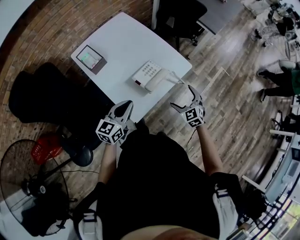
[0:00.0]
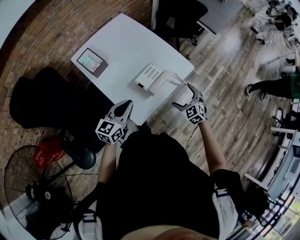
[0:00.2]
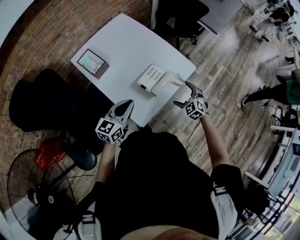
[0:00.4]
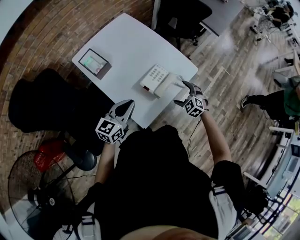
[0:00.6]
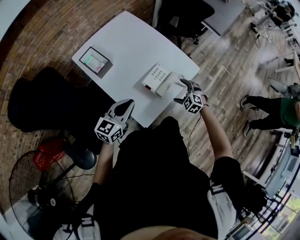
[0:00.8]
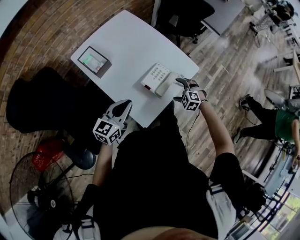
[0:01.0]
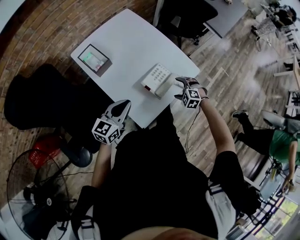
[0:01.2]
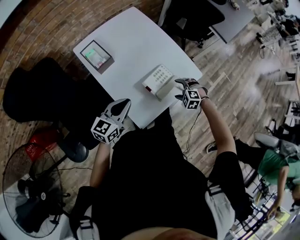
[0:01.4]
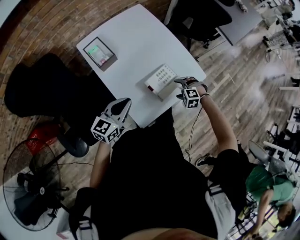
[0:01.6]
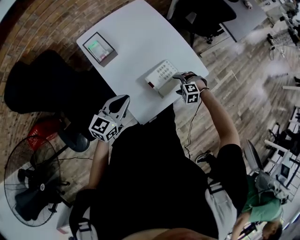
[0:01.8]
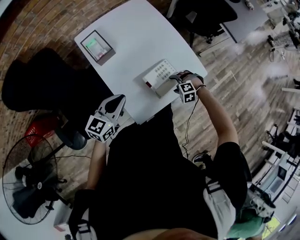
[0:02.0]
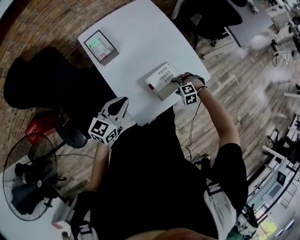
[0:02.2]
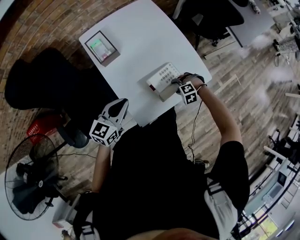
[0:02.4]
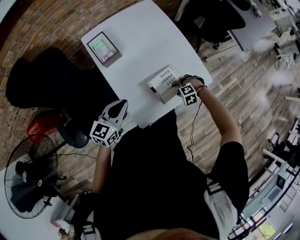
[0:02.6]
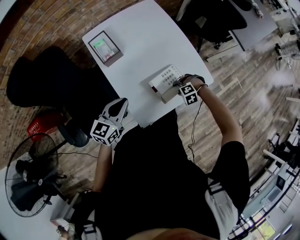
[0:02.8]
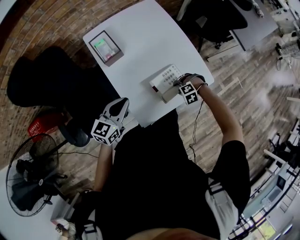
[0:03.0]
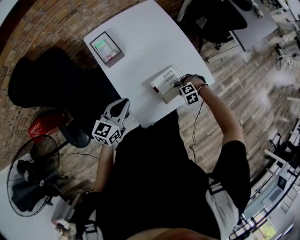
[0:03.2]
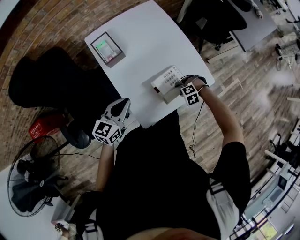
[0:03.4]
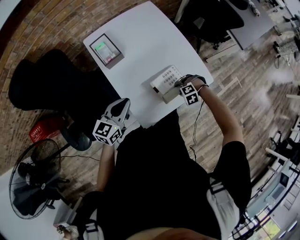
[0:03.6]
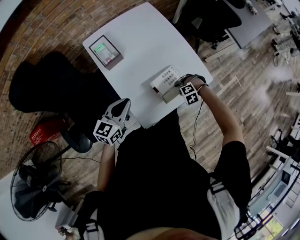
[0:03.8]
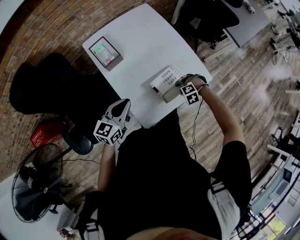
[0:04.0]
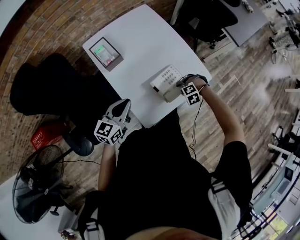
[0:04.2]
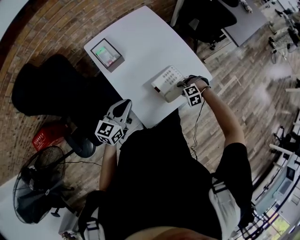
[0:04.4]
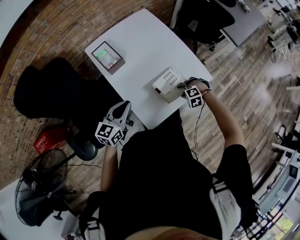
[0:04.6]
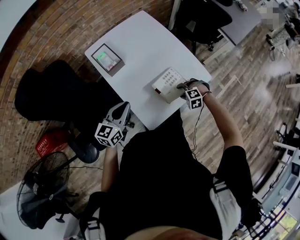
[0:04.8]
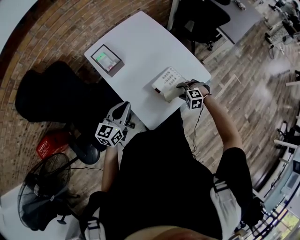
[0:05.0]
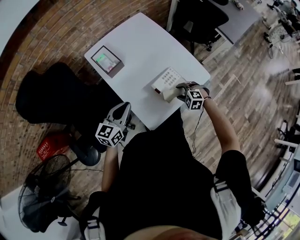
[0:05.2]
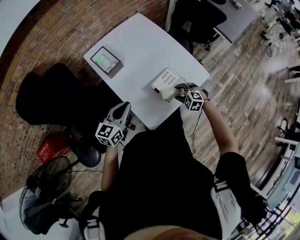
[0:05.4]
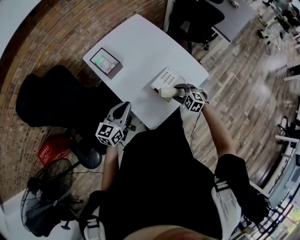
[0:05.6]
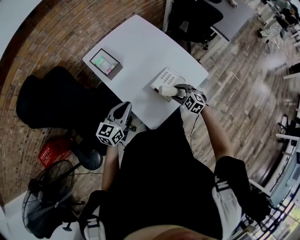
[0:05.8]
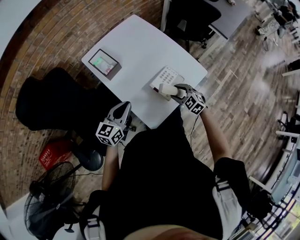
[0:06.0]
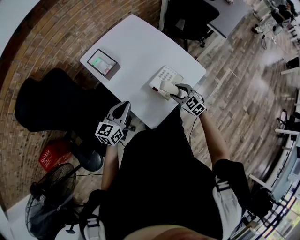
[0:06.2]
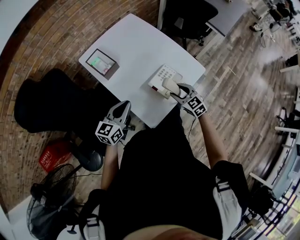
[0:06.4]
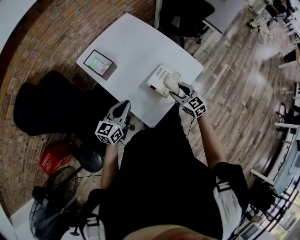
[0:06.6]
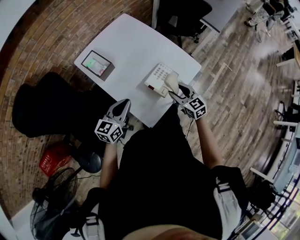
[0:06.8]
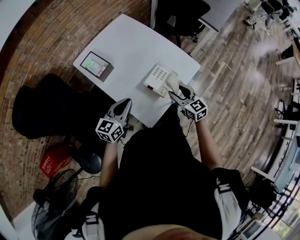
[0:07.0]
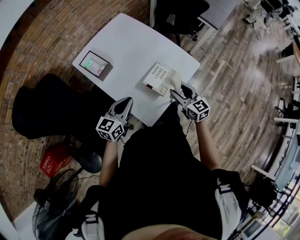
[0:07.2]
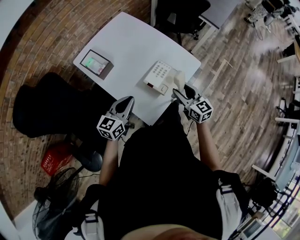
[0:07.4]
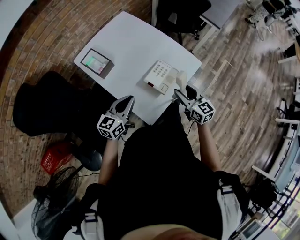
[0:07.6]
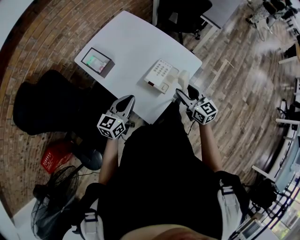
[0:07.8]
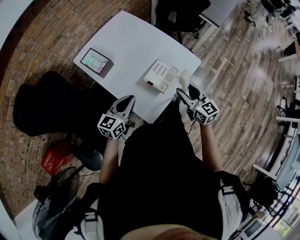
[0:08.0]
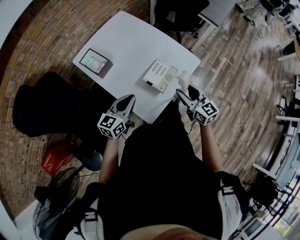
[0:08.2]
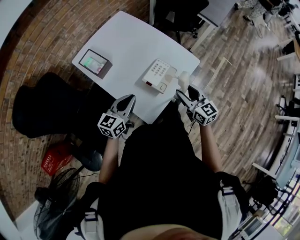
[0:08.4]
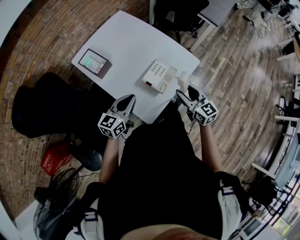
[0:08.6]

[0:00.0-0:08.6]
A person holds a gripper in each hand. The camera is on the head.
0.0 to 1.4 s: The left gripper goes some 10 cm to the left and forward, while the right gripper is displaced forward, downward and to the left by some 15 cm, and points its fingers roughly 30 degrees further downward.
1.4 to 2.8 s: The right gripper travels downward by some 5 cm, and turns by roughly 40 degrees.
2.8 to 4.4 s: The grippers stay close to where they were, moving slightly.
4.4 to 5.8 s: The right gripper is displaced upward by about 5 cm, and angles its fingers upward, by roughly 30 degrees.
5.8 to 7.2 s: The right gripper shifts approximately 10 cm upward, and turns by about 50 degrees.
7.2 to 8.6 s: The grippers stay close to where they were, moving slightly.

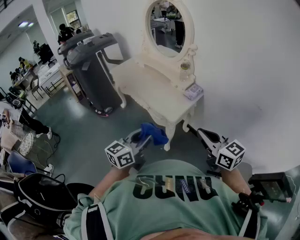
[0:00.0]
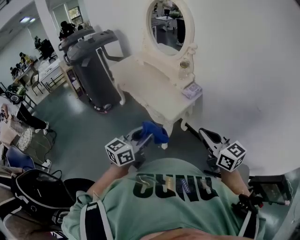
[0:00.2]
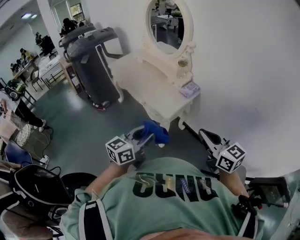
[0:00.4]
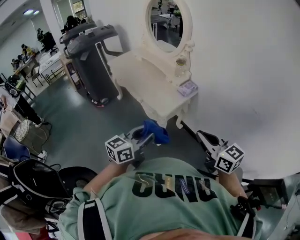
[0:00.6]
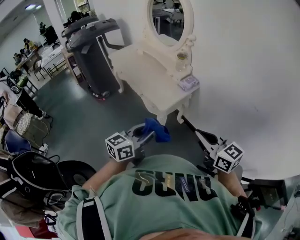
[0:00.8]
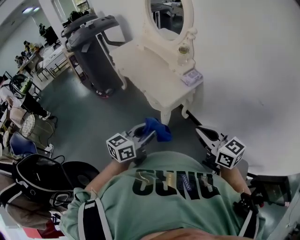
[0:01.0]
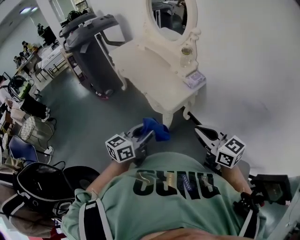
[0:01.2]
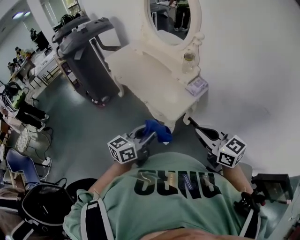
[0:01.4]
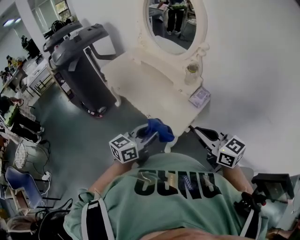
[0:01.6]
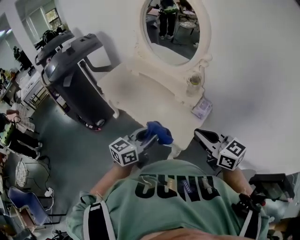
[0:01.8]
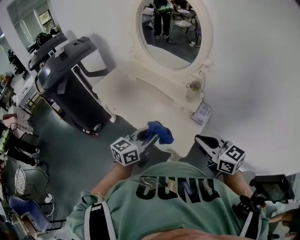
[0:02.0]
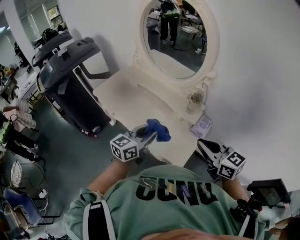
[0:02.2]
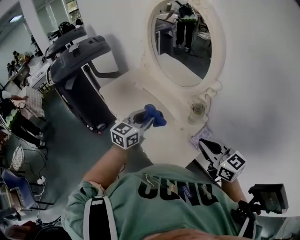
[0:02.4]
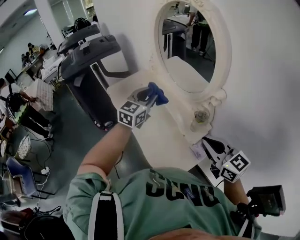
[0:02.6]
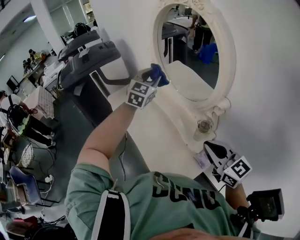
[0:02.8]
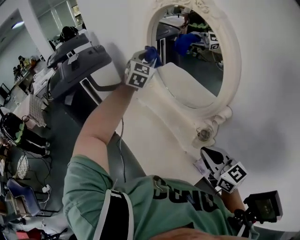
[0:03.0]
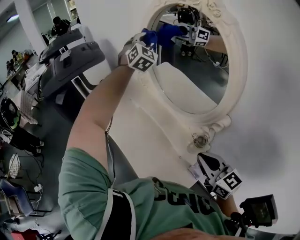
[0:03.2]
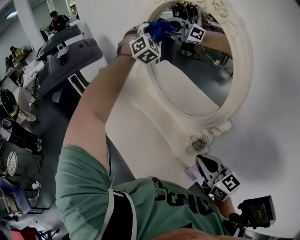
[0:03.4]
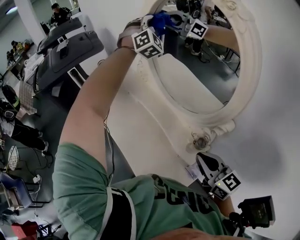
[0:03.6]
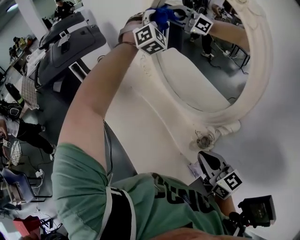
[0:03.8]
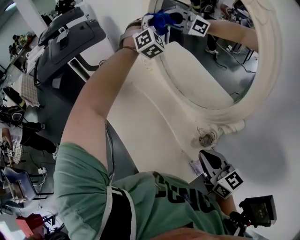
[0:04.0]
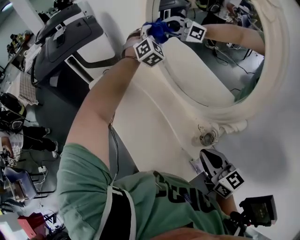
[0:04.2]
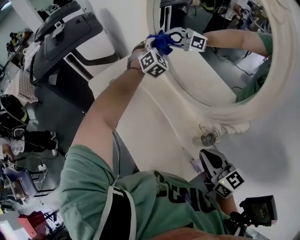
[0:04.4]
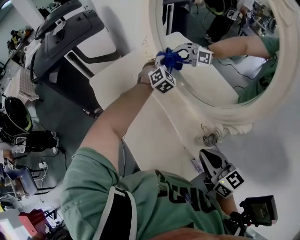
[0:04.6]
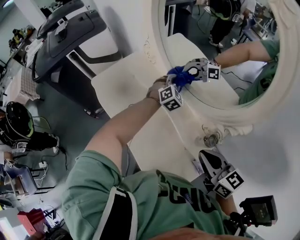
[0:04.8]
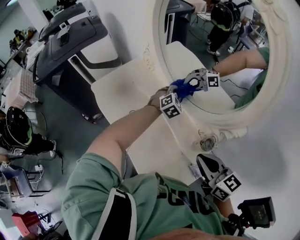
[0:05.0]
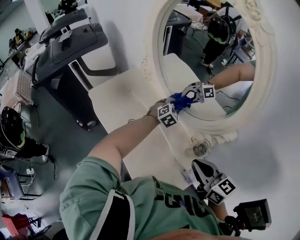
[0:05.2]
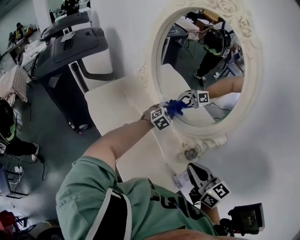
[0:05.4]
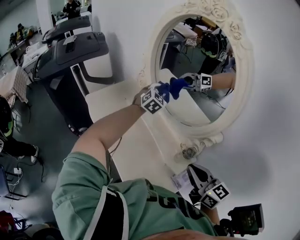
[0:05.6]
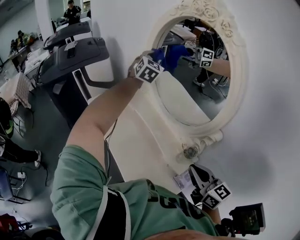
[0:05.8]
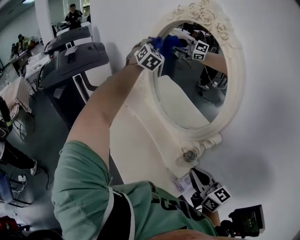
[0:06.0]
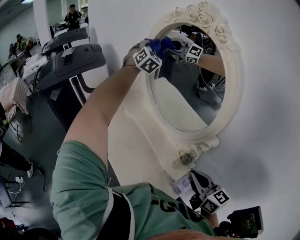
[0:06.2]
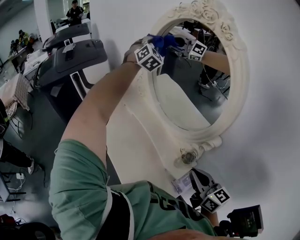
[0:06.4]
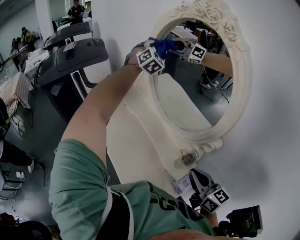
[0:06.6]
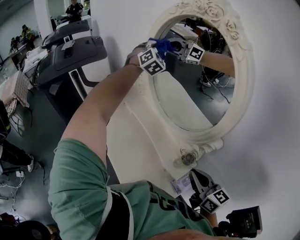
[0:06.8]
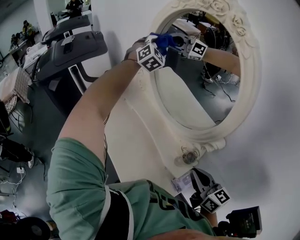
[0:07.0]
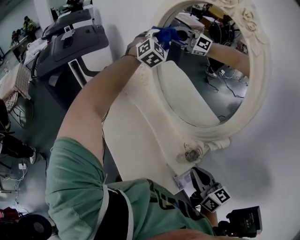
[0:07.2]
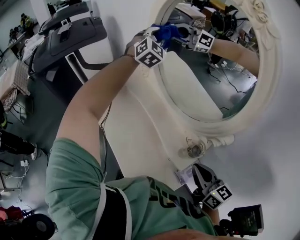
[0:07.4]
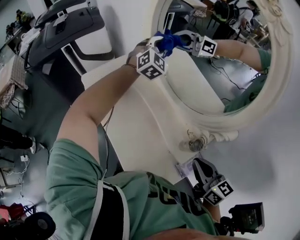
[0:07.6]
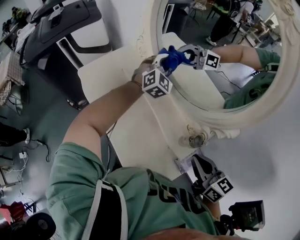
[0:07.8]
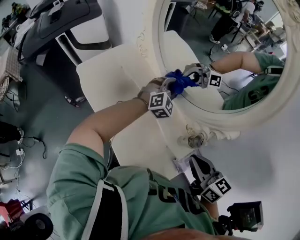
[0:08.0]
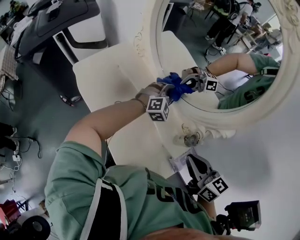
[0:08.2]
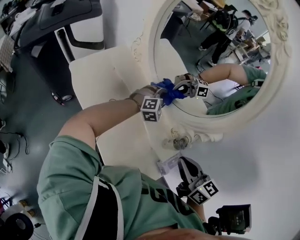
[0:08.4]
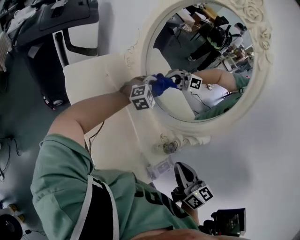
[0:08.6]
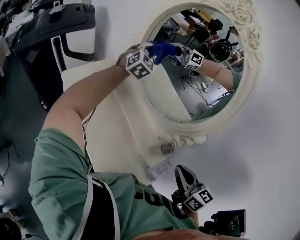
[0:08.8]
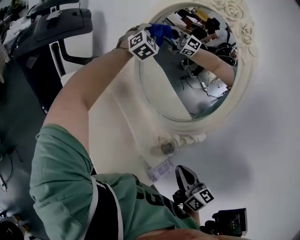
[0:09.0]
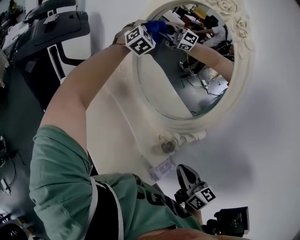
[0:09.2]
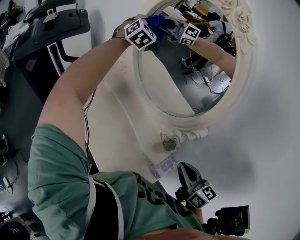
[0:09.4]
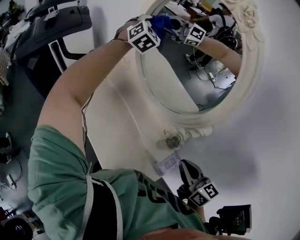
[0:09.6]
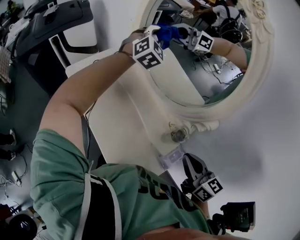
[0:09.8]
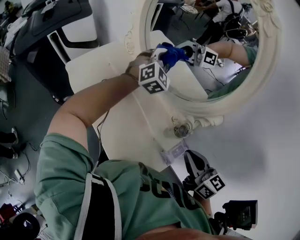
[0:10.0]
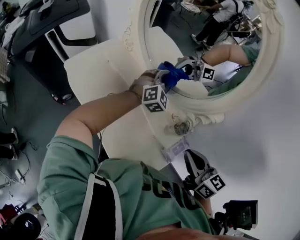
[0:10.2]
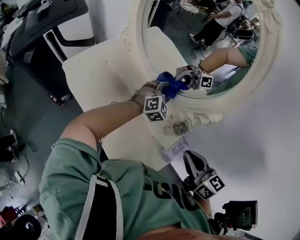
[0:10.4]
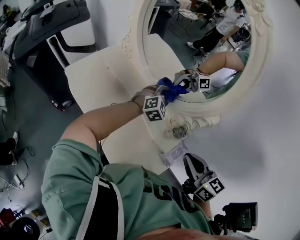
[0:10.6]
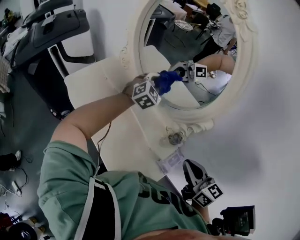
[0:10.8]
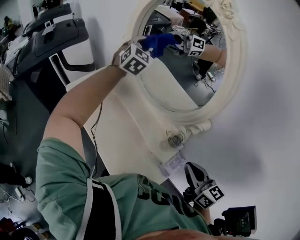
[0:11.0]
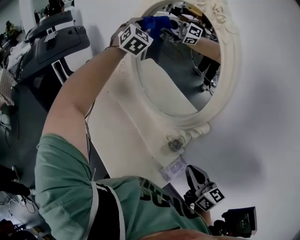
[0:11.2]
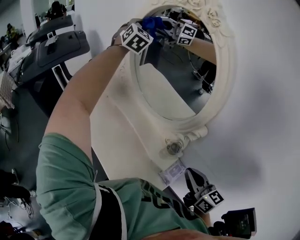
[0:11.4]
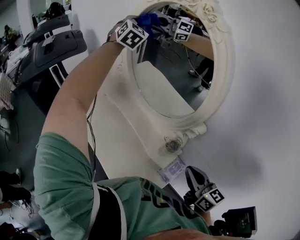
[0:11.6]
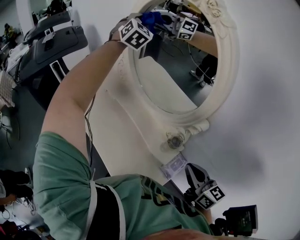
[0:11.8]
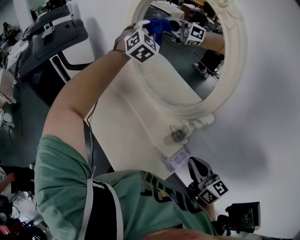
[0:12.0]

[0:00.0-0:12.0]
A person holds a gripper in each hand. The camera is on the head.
0.0 to 1.6 s: Both grippers move forward, some 20 cm.
1.6 to 3.0 s: The pair of grippers is taken forward, some 60 cm. The left gripper rolls clockwise, seen from behind, by approximately 60 degrees.
3.0 to 4.4 s: The left gripper moves downward and forward, some 25 cm, and changes its angle by approximately 20 degrees; the right gripper moves downward and forward, roughly 10 cm.
4.4 to 6.0 s: The left gripper goes some 25 cm upward; the right gripper goes some 5 cm upward.
6.0 to 7.6 s: The left gripper heads downward, covering about 20 cm; the right gripper moves downward, about 5 cm.
7.6 to 9.0 s: The left gripper goes some 10 cm upward; the right gripper moves some 5 cm.
9.0 to 10.4 s: The left gripper is displaced downward, backward and to the right by about 40 cm, and rotates some 30 degrees.
10.4 to 12.0 s: The left gripper travels upward and forward by about 35 cm, and swivels about 30 degrees.

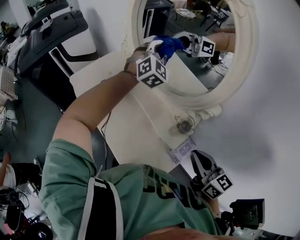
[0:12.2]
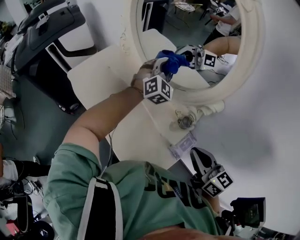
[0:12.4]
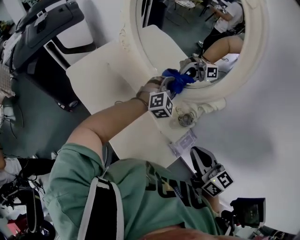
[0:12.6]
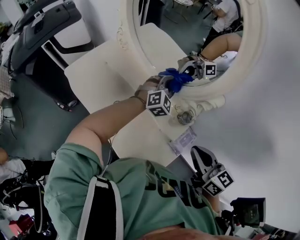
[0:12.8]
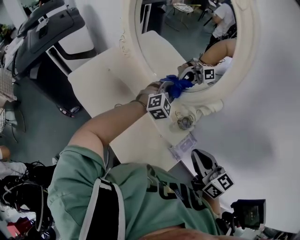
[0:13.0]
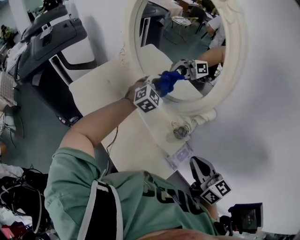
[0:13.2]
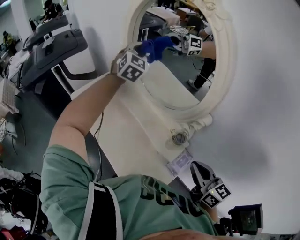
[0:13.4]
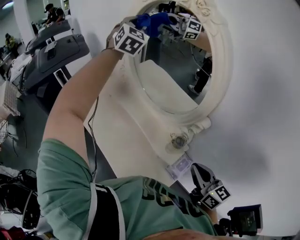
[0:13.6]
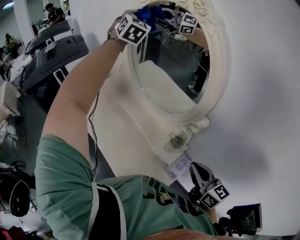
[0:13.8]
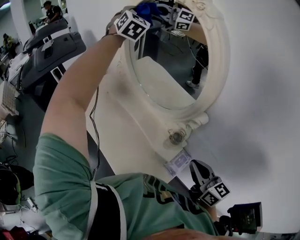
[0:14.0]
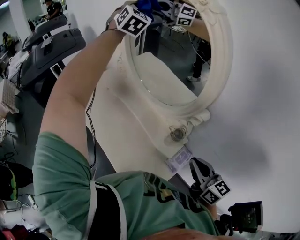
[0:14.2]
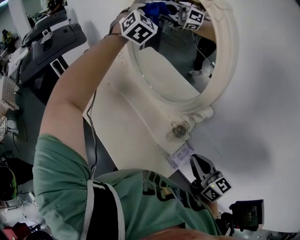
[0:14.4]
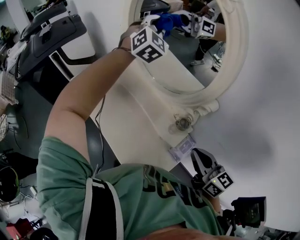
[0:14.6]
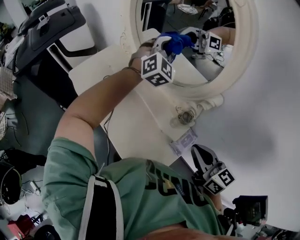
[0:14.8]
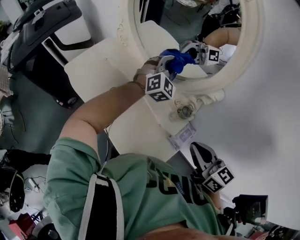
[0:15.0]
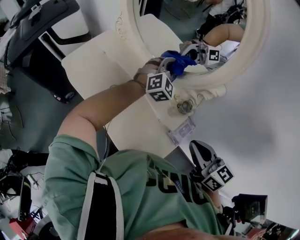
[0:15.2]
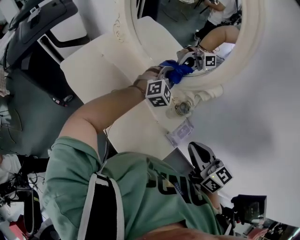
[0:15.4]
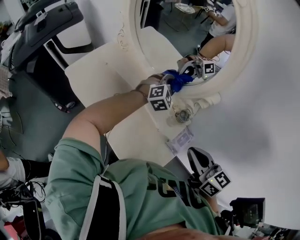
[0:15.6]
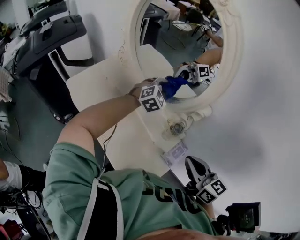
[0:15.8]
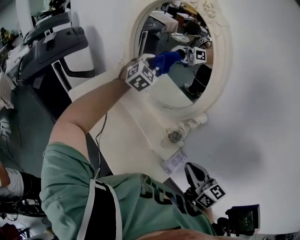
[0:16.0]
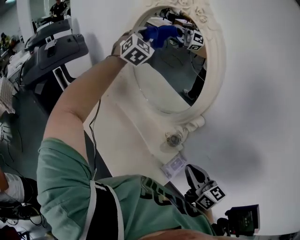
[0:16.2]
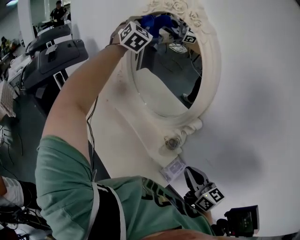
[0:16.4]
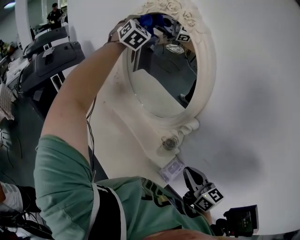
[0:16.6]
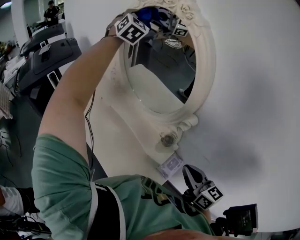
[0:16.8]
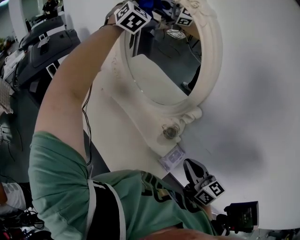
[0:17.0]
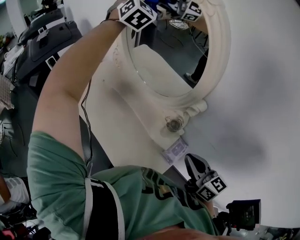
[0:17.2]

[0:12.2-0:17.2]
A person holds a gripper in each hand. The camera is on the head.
12.2 to 13.8 s: The left gripper travels upward, forward and to the left by approximately 25 cm.
13.8 to 15.6 s: The left gripper goes about 50 cm downward, backward and to the right, and changes its angle by about 40 degrees.
15.6 to 17.2 s: The left gripper is displaced upward and forward by about 40 cm, and points its fingers roughly 30 degrees further upward.
